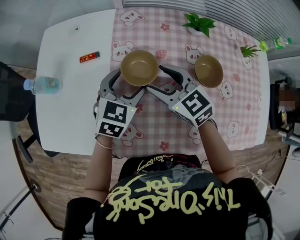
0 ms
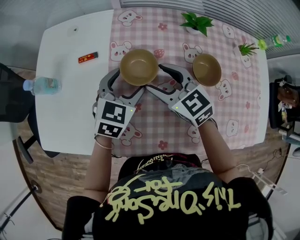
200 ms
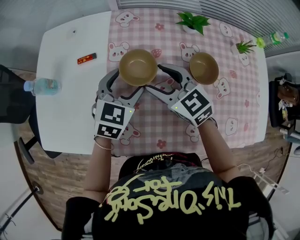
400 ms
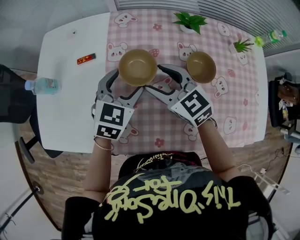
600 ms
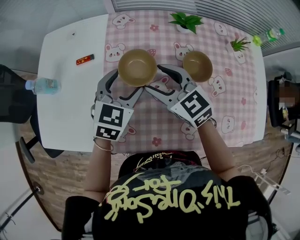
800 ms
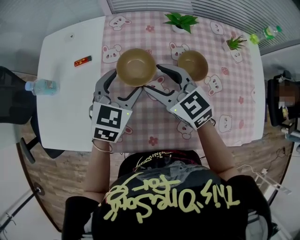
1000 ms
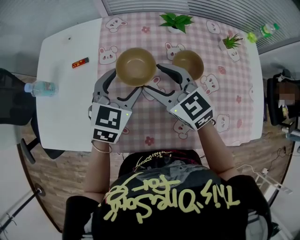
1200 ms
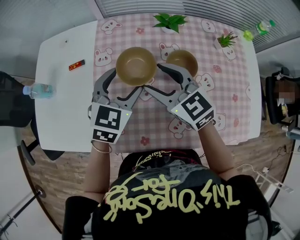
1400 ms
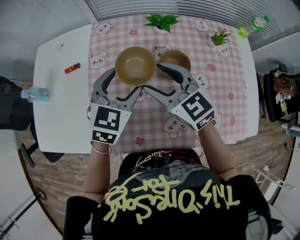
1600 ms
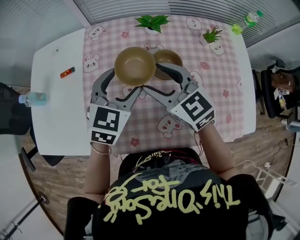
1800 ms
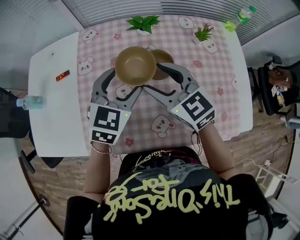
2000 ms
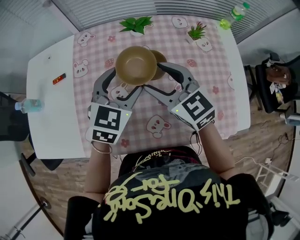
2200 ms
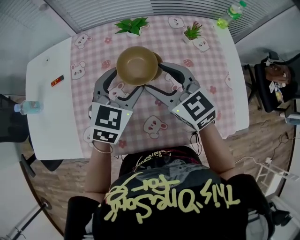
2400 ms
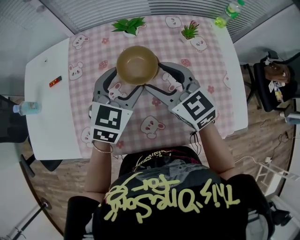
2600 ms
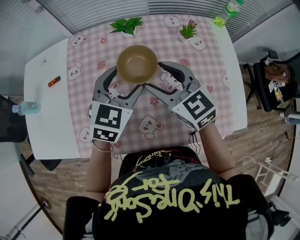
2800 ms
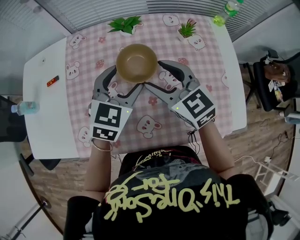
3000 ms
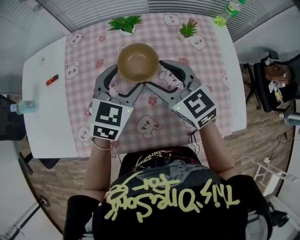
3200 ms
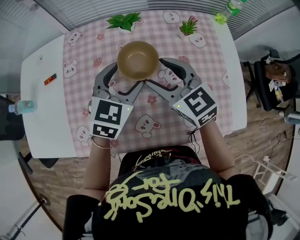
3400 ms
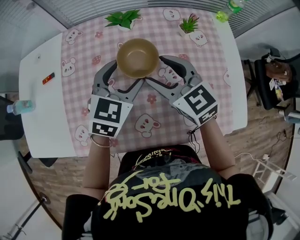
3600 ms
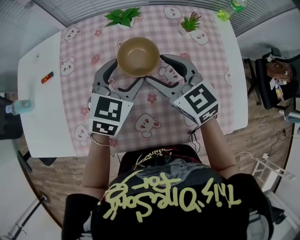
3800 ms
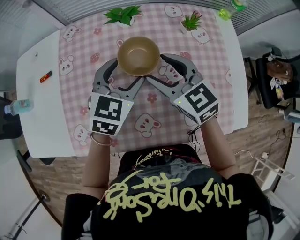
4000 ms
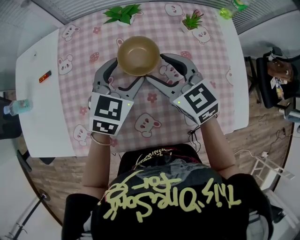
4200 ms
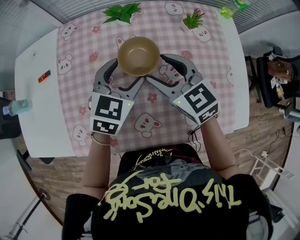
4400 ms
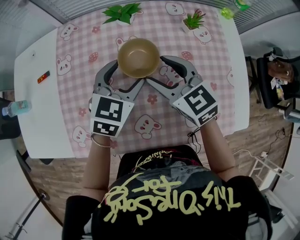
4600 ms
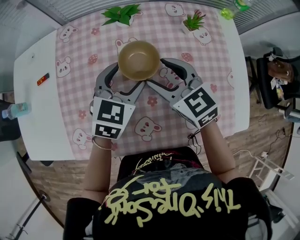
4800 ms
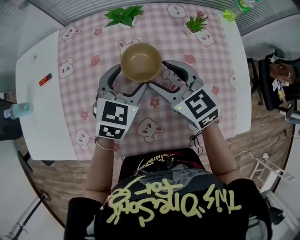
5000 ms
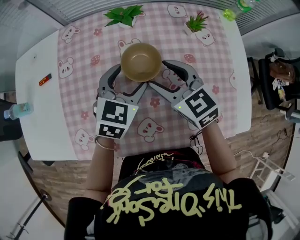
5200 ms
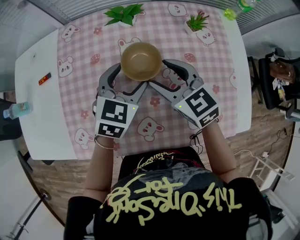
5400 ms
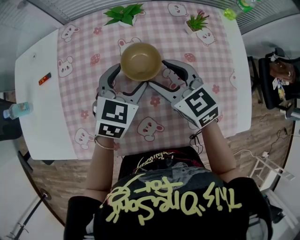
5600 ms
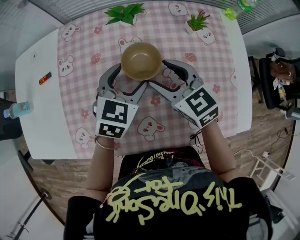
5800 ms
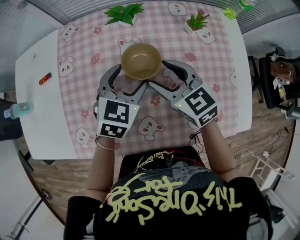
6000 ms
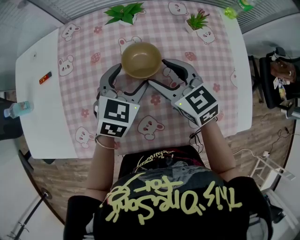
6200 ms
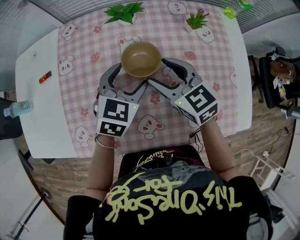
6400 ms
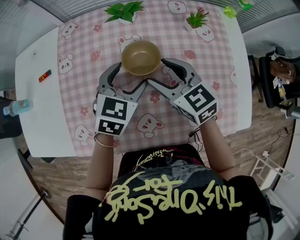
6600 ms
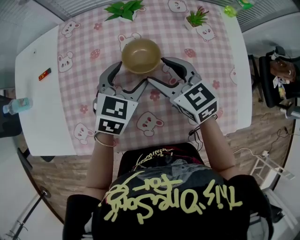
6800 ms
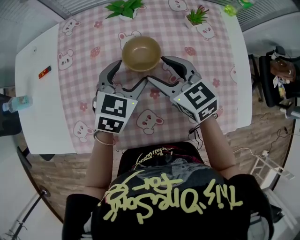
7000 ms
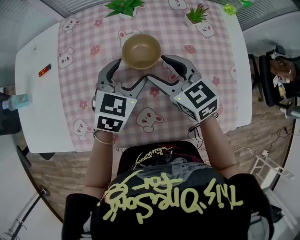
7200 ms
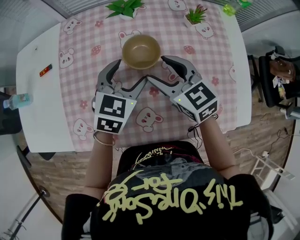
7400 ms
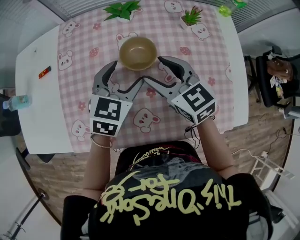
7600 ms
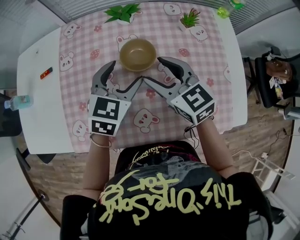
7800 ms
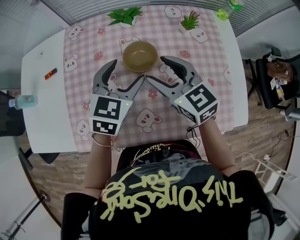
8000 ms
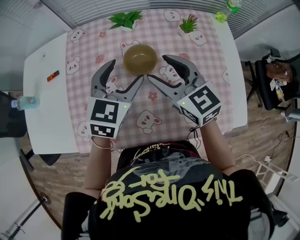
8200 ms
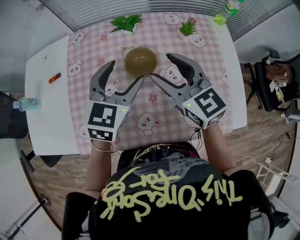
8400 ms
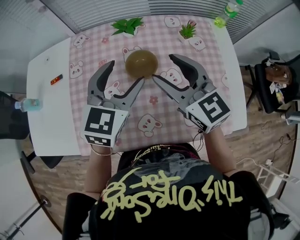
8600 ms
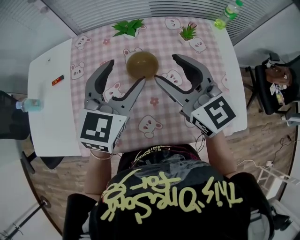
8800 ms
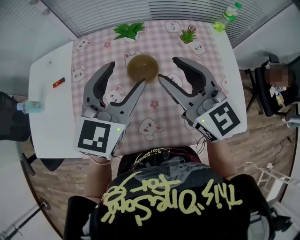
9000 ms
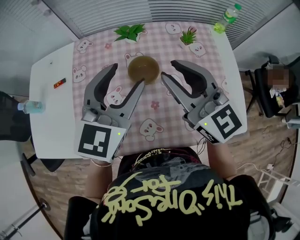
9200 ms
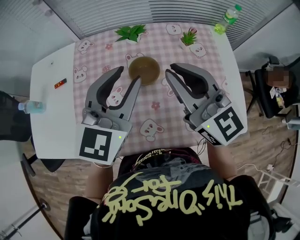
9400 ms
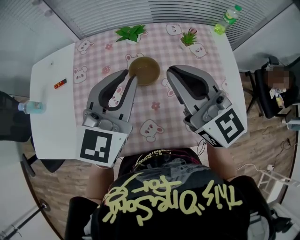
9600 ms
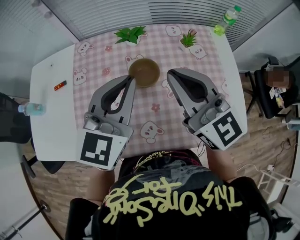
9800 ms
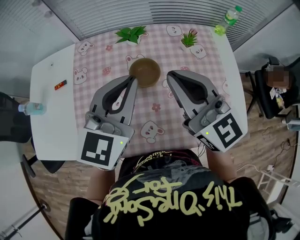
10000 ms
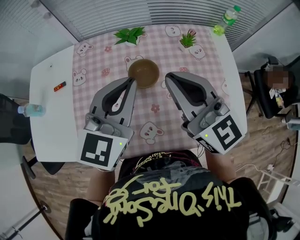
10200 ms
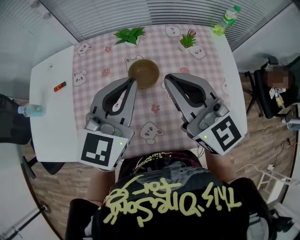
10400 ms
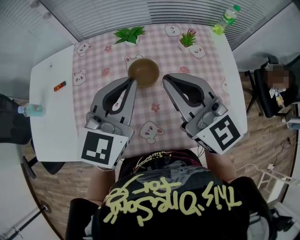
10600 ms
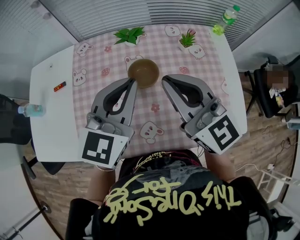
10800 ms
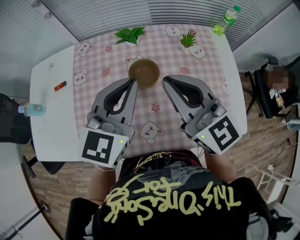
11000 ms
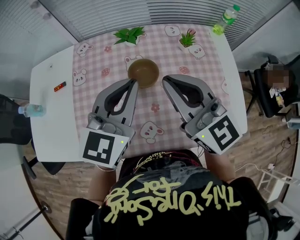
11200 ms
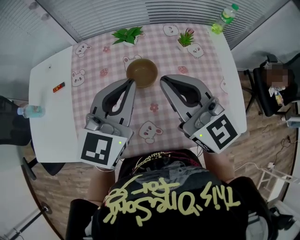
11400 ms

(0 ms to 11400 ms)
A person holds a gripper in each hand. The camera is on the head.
0 ms - 1400 ms: The left gripper goes approximately 10 cm upward and to the right. The right gripper goes roughly 10 cm to the right and upward.
1400 ms - 2800 ms: The grippers both shift to the right by some 15 cm.
2800 ms - 4200 ms: The grippers make only small movements.
4200 ms - 7200 ms: The grippers stay close to where they were, moving slightly.
7200 ms - 8600 ms: Both grippers move upward, roughly 15 cm.
8600 ms - 10000 ms: The grippers both shift upward by roughly 5 cm. The right gripper closes up. The left gripper closes.
10000 ms - 11400 ms: The two grippers keep their place.

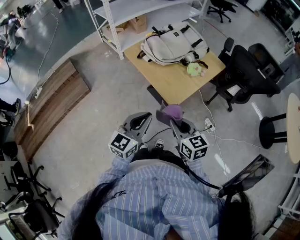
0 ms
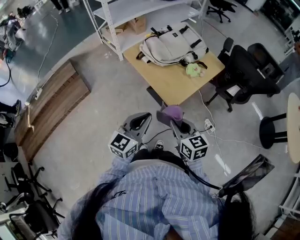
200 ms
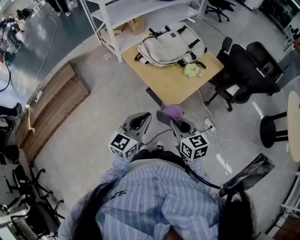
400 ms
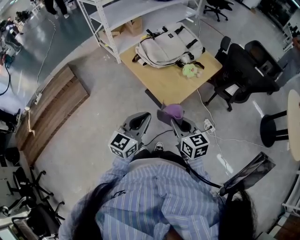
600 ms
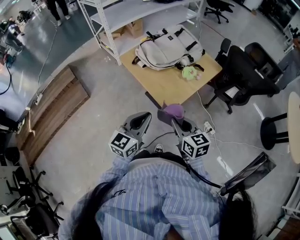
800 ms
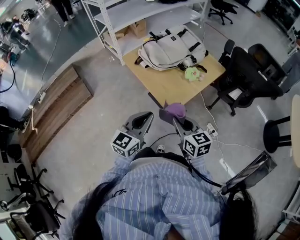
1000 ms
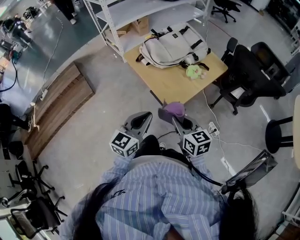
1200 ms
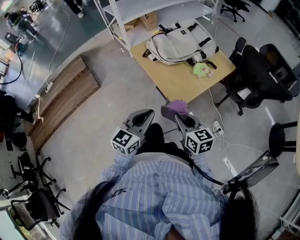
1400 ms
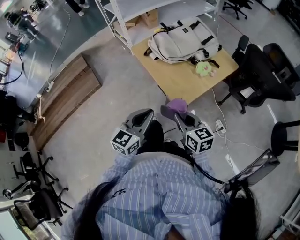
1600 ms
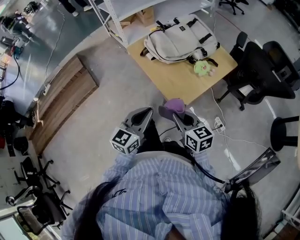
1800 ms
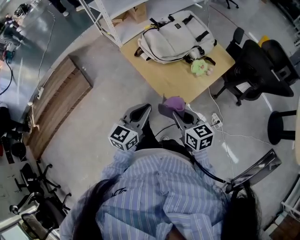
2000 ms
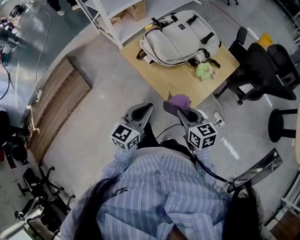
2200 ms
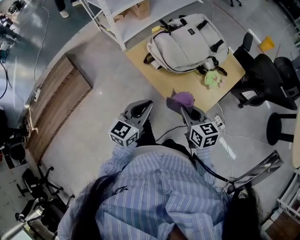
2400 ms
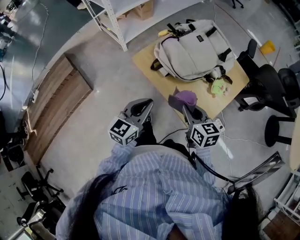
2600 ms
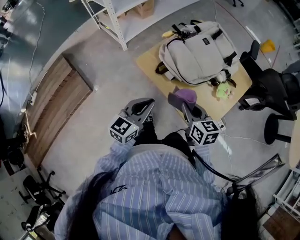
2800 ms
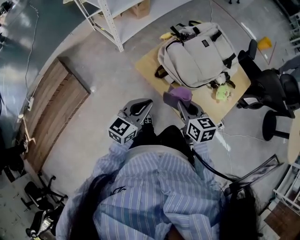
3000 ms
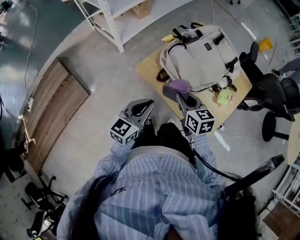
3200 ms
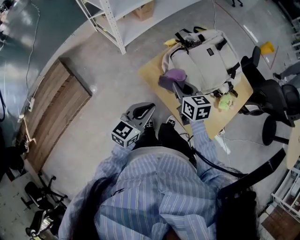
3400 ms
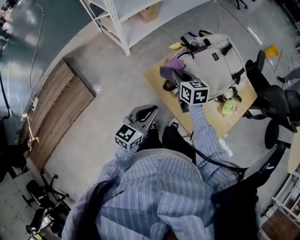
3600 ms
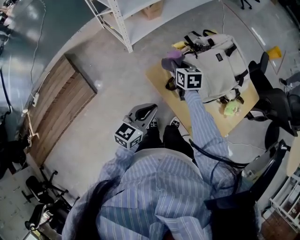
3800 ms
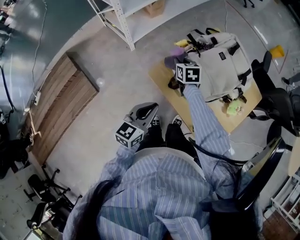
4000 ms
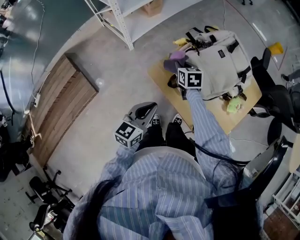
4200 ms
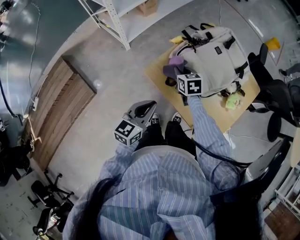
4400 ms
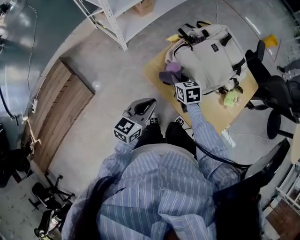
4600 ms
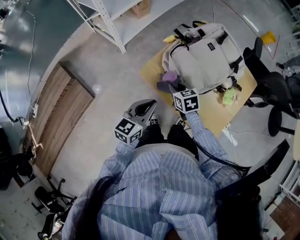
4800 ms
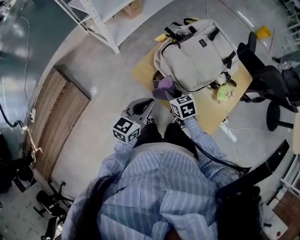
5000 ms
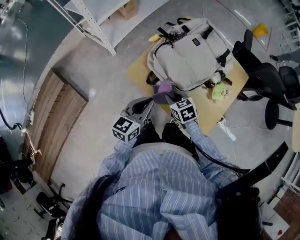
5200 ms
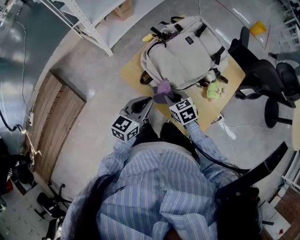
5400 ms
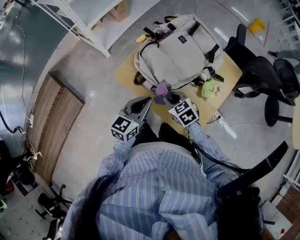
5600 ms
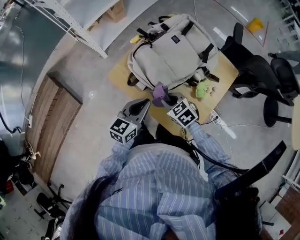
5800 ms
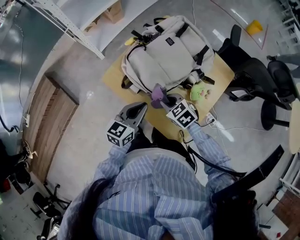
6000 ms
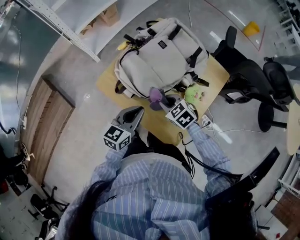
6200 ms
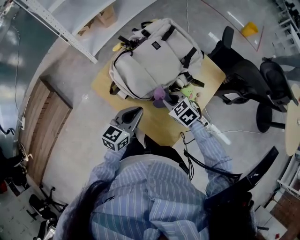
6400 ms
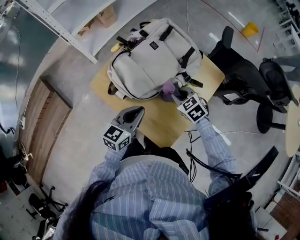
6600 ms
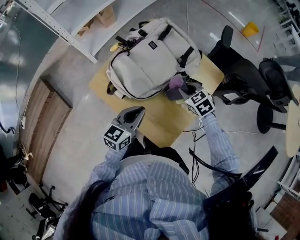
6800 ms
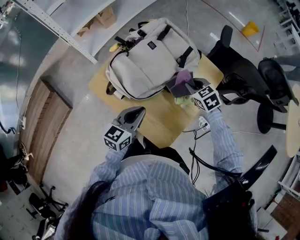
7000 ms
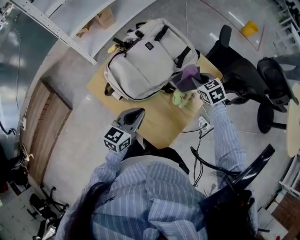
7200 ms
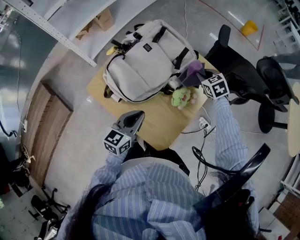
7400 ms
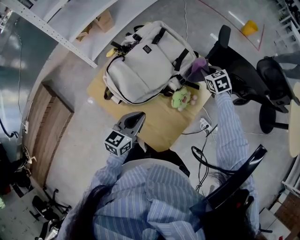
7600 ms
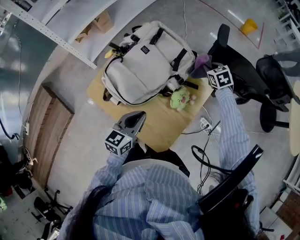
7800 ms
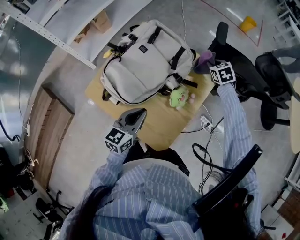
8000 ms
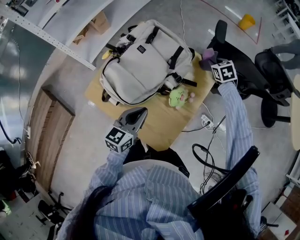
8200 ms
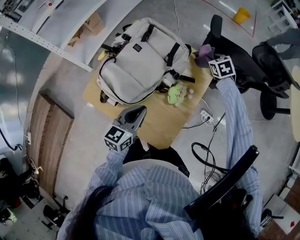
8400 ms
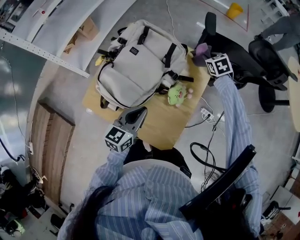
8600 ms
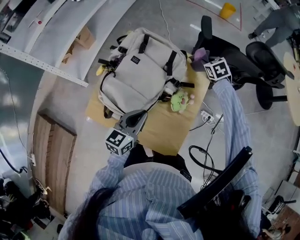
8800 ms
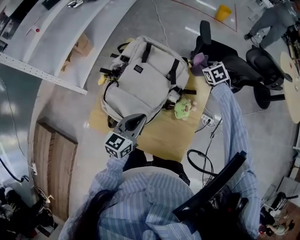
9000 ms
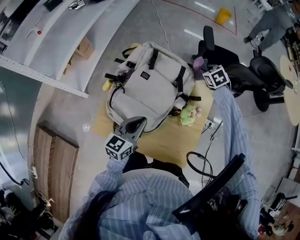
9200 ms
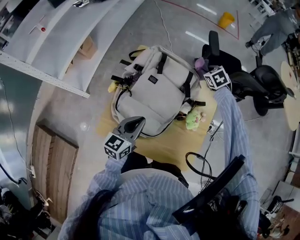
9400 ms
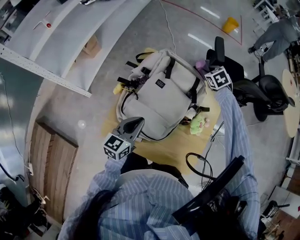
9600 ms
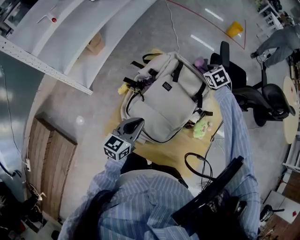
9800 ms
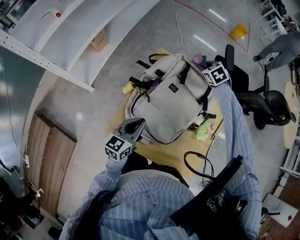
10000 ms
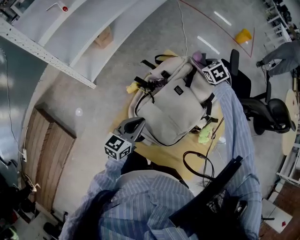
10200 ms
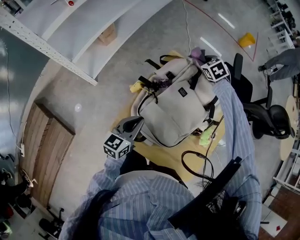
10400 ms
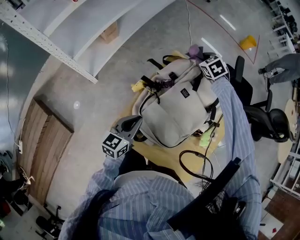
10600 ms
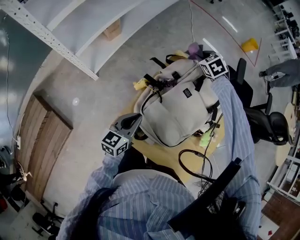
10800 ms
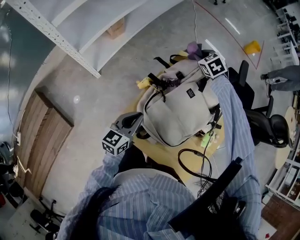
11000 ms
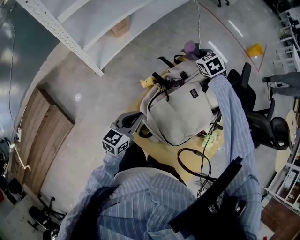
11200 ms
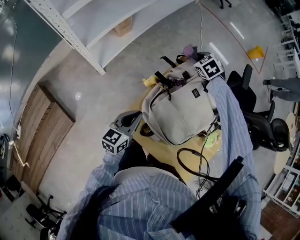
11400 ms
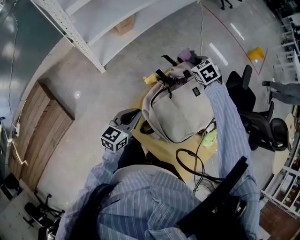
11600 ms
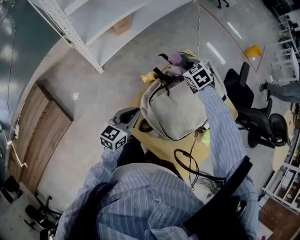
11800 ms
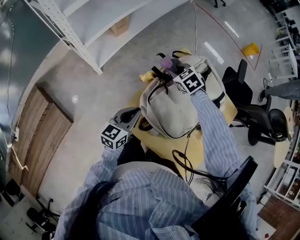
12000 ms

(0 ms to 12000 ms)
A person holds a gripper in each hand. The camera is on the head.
0 ms - 1600 ms: The right gripper shifts some 5 cm forward.
1600 ms - 3000 ms: Both grippers move forward and to the left, approximately 35 cm.
3000 ms - 4400 ms: The left gripper moves approximately 5 cm; the right gripper shifts some 25 cm forward, downward and to the left.
4400 ms - 6000 ms: The right gripper shifts about 25 cm to the right and backward, and turns by some 30 degrees; the left gripper heads to the right, covering some 20 cm.
6000 ms - 7600 ms: The right gripper is displaced to the right and forward by some 40 cm, and swivels about 30 degrees. The left gripper moves to the right, roughly 10 cm.
7600 ms - 9000 ms: The right gripper heads forward, covering roughly 5 cm. The left gripper moves forward and to the left, some 10 cm.
9000 ms - 10400 ms: The grippers both shift to the left by about 25 cm. The right gripper changes its angle by about 20 degrees.
10400 ms - 12000 ms: The left gripper travels to the left by some 5 cm. Meanwhile the right gripper goes roughly 25 cm to the left and backward.
